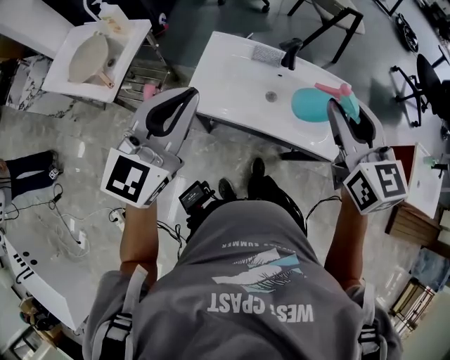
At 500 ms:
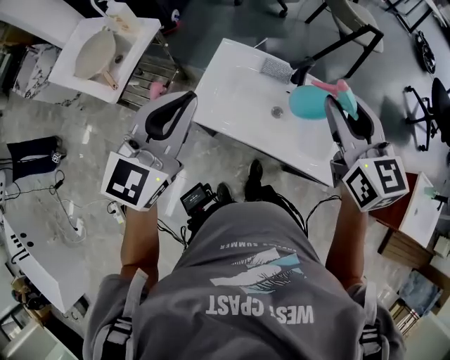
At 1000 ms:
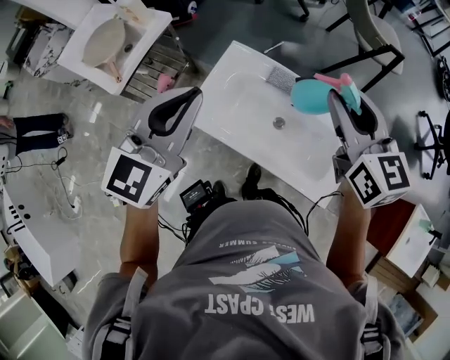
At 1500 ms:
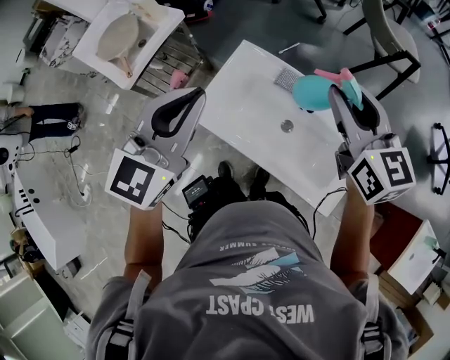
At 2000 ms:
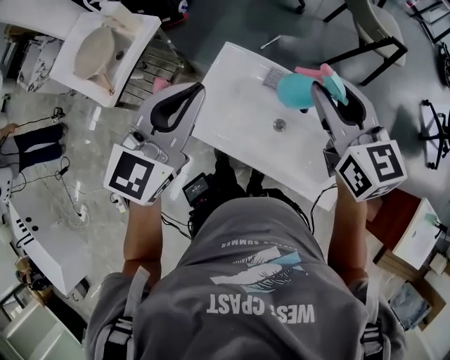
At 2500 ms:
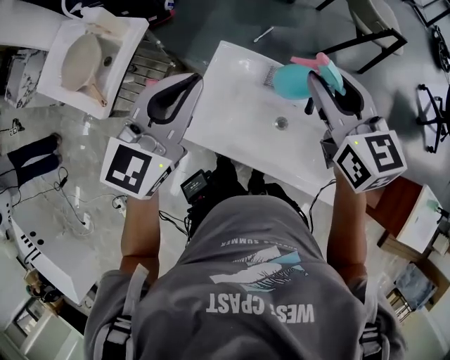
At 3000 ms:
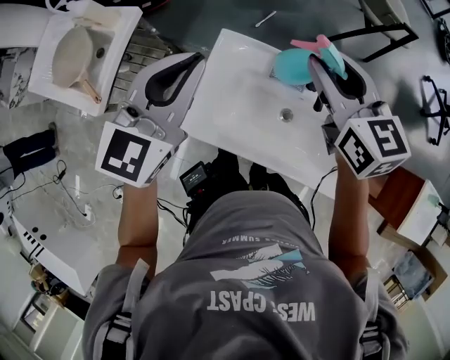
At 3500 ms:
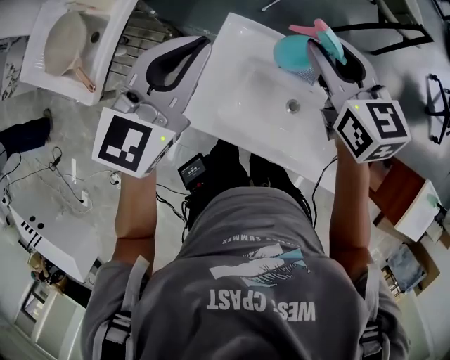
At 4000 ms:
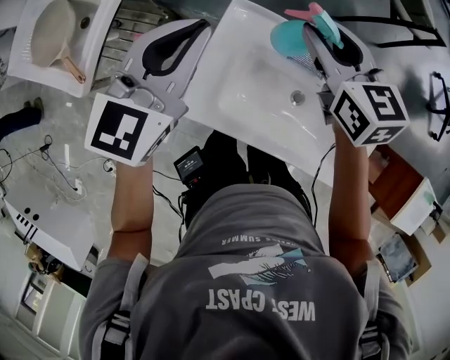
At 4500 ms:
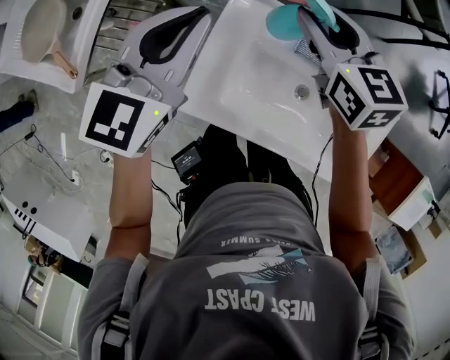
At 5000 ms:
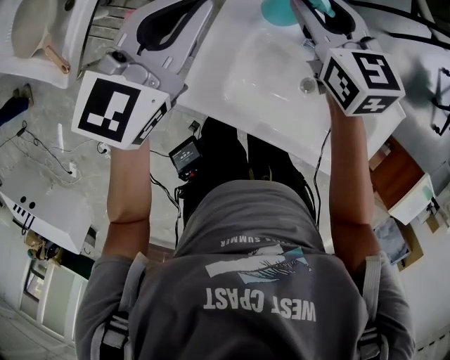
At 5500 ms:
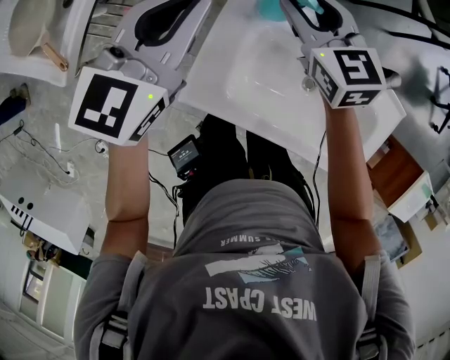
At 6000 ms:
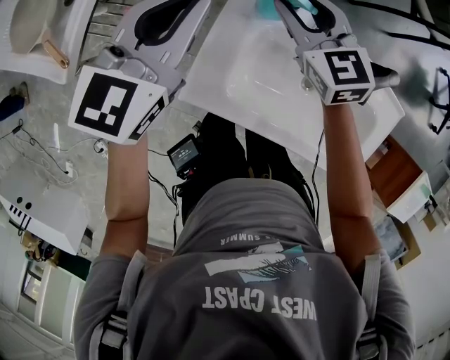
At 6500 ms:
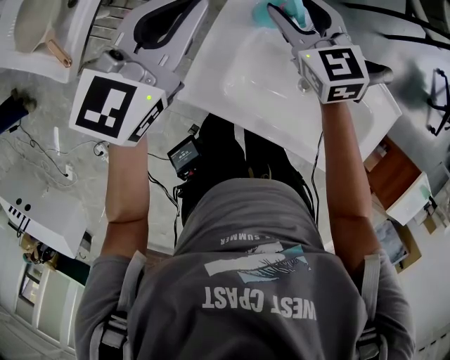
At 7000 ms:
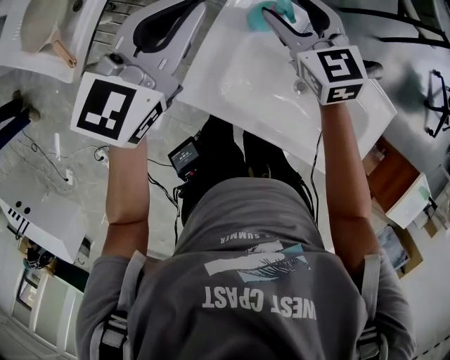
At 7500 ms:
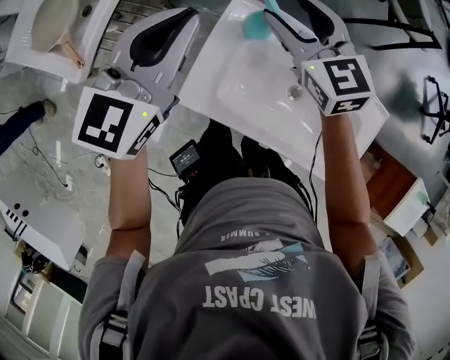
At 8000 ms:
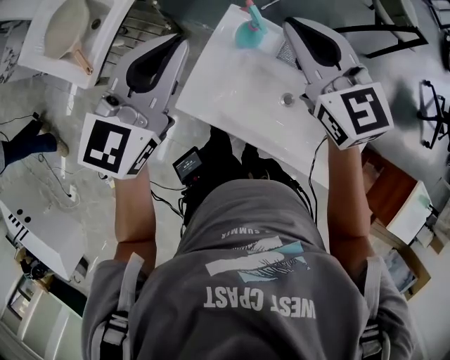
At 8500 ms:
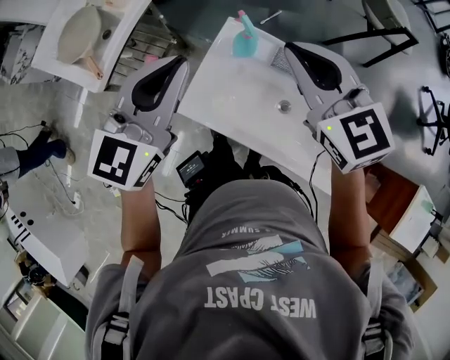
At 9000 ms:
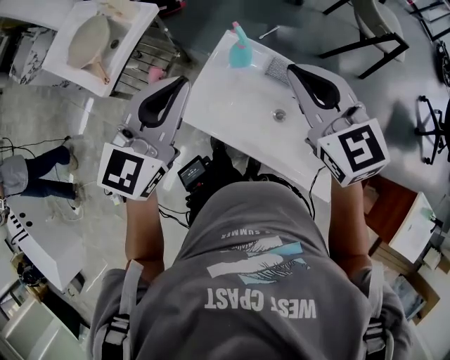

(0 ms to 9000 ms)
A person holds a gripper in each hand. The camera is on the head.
0 ms - 2000 ms: Both grippers move forward, approximately 20 cm.
2000 ms - 4500 ms: The left gripper goes approximately 25 cm forward and downward, while the right gripper shifts roughly 30 cm downward, forward and to the left.
4500 ms - 7000 ms: The right gripper ends up some 5 cm from where it was, and opens.
7000 ms - 9000 ms: The right gripper heads upward and backward, covering roughly 30 cm, and closes its fingers. Meanwhile the left gripper is displaced backward and upward by about 20 cm.

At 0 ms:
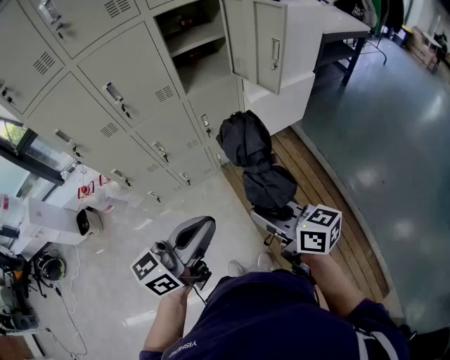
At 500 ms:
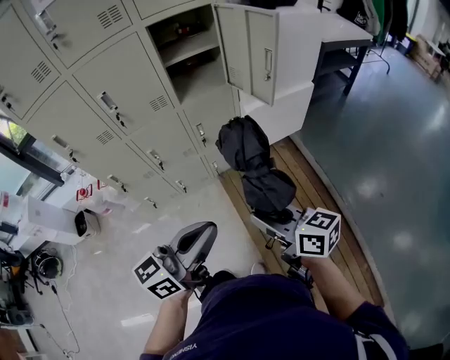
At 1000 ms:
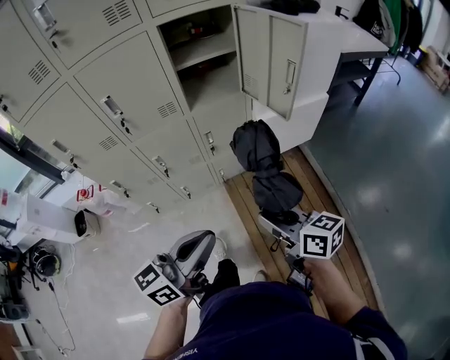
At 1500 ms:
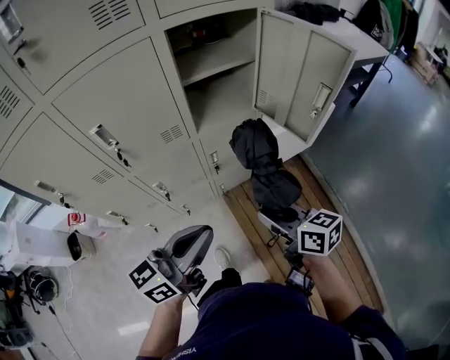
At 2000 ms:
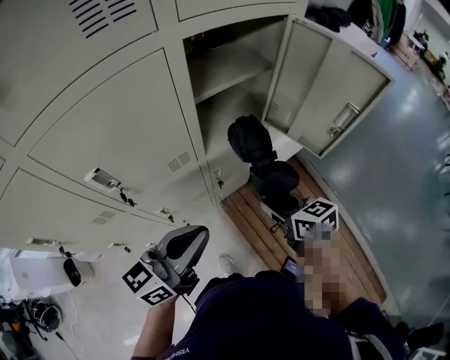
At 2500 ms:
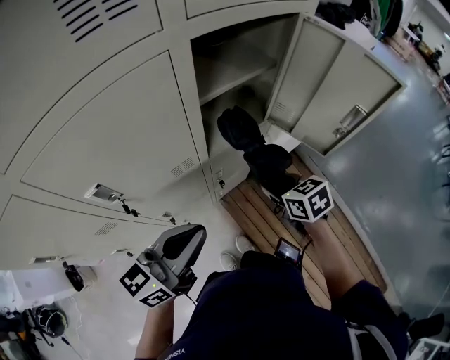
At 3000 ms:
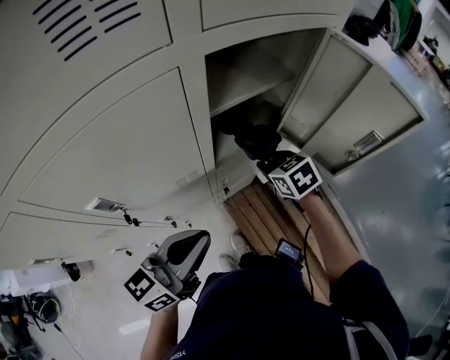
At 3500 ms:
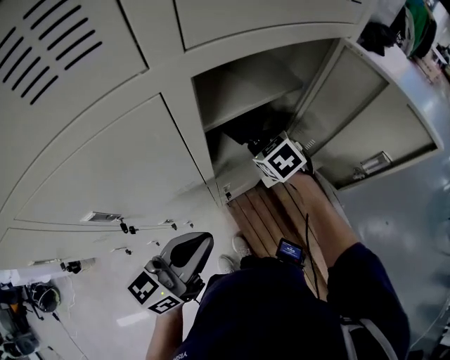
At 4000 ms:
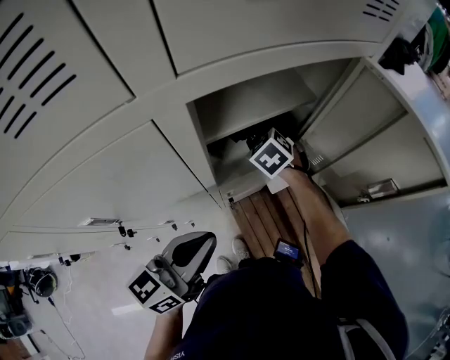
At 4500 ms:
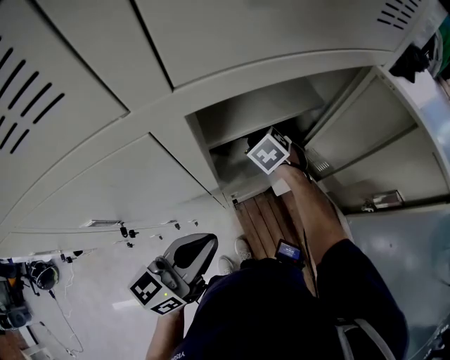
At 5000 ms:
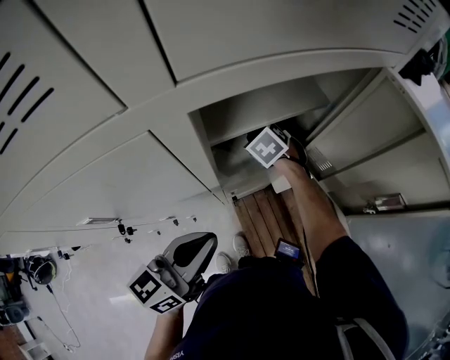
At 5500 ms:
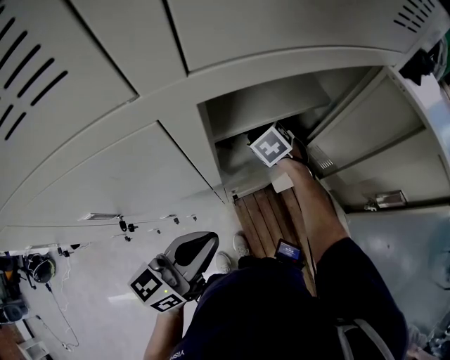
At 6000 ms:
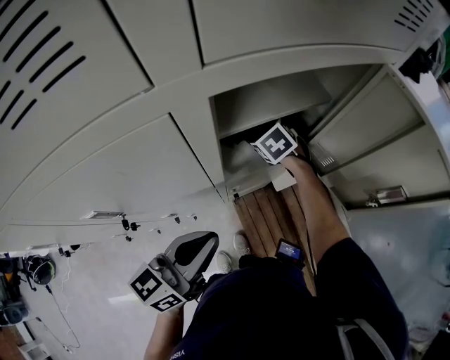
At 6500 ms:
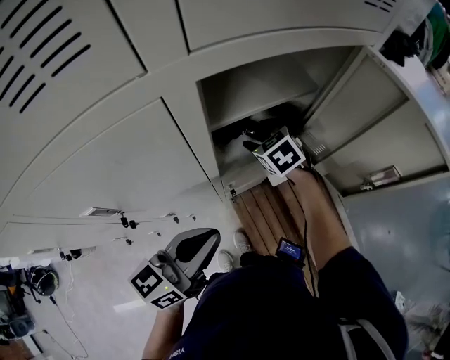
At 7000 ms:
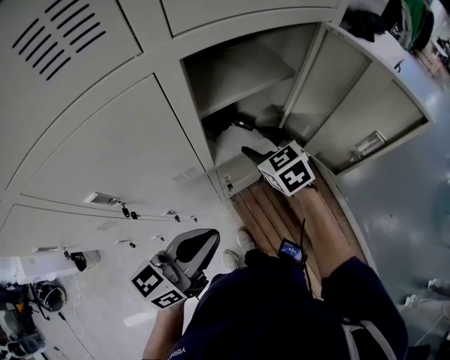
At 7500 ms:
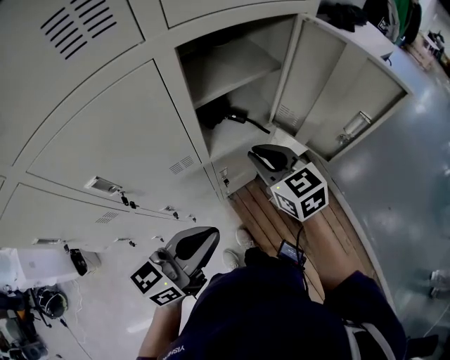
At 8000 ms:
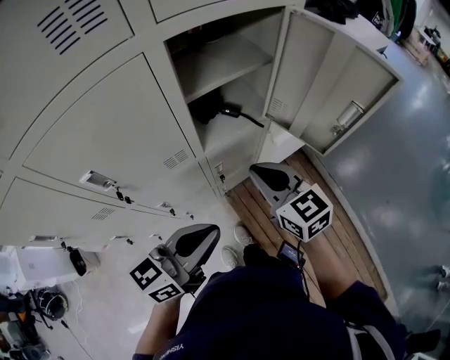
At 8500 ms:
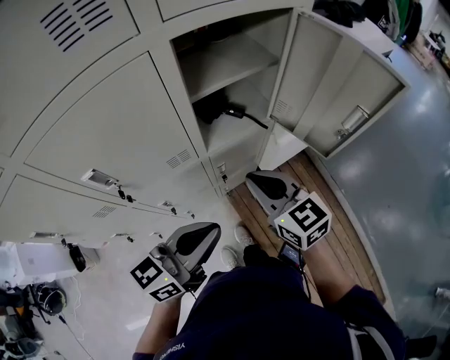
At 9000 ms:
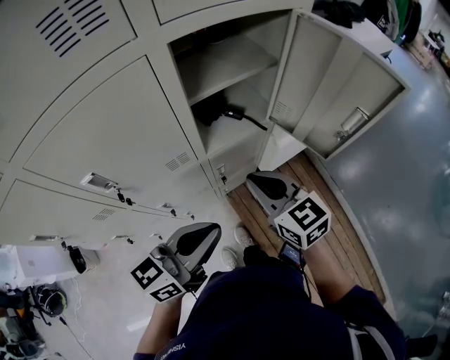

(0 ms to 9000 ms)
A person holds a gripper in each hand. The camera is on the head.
0 ms - 2000 ms: The grippers both shift forward by roughly 35 cm. The right gripper swivels roughly 30 degrees.
2000 ms - 4500 ms: The right gripper moves forward, roughly 35 cm, and rotates around the line of its fingers by some 40 degrees, counterclockwise from behind. Meanwhile the left gripper goes about 15 cm forward.
4500 ms - 7000 ms: The left gripper goes roughly 5 cm backward, while the right gripper moves backward and upward, approximately 15 cm, rotates some 20 degrees, and opens its fingers.
7000 ms - 9000 ms: The right gripper moves backward, roughly 15 cm, turns by about 20 degrees, and closes.

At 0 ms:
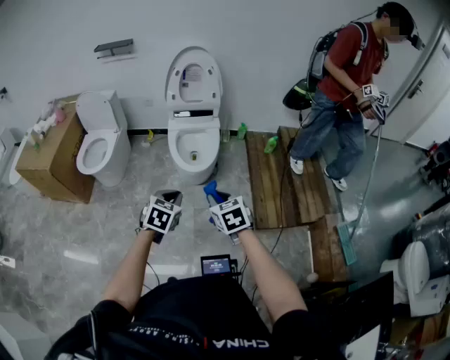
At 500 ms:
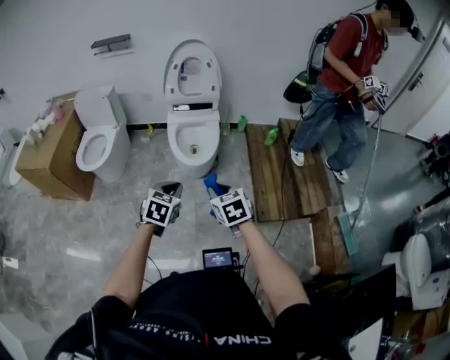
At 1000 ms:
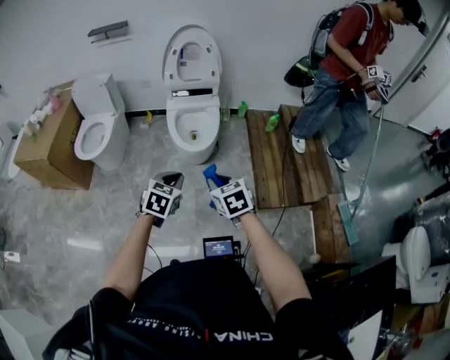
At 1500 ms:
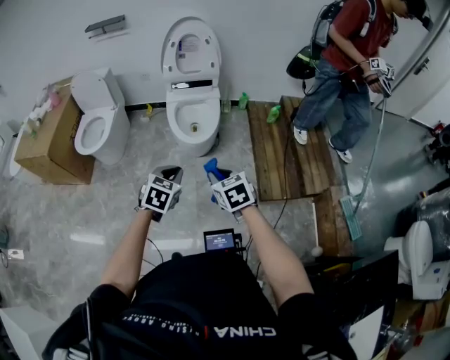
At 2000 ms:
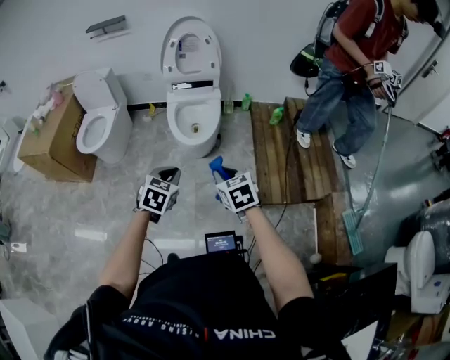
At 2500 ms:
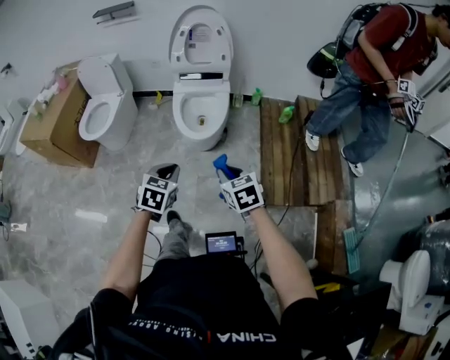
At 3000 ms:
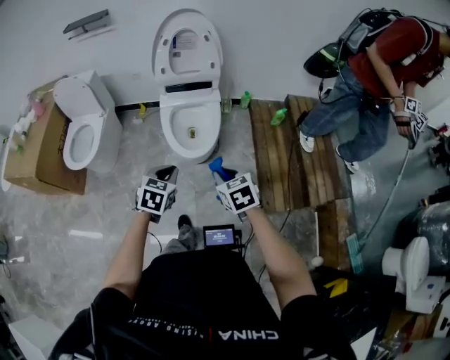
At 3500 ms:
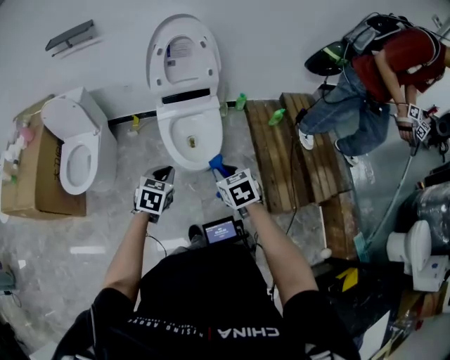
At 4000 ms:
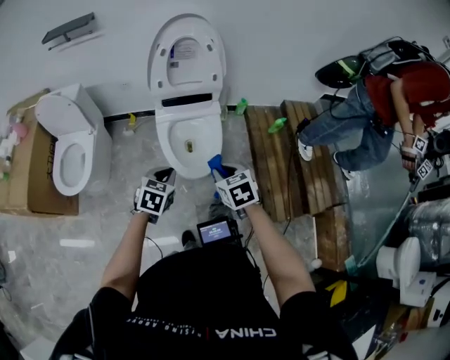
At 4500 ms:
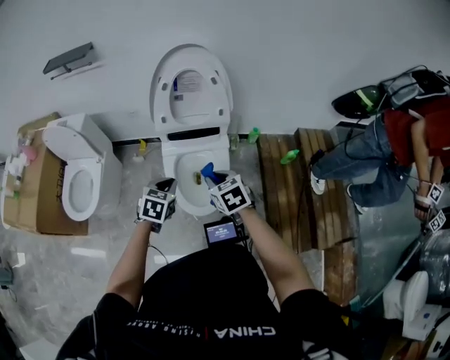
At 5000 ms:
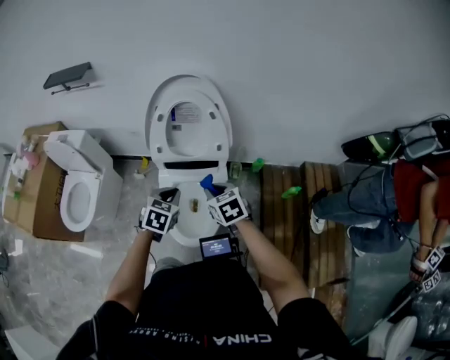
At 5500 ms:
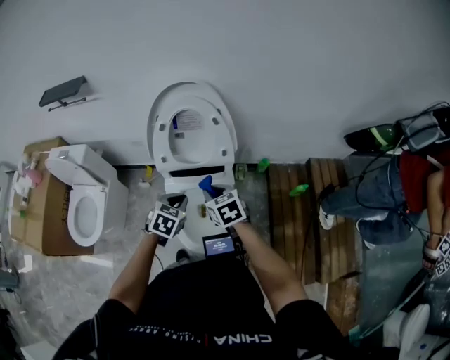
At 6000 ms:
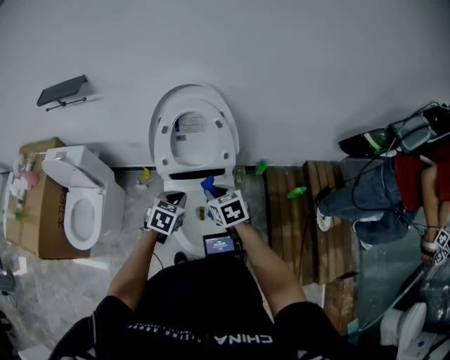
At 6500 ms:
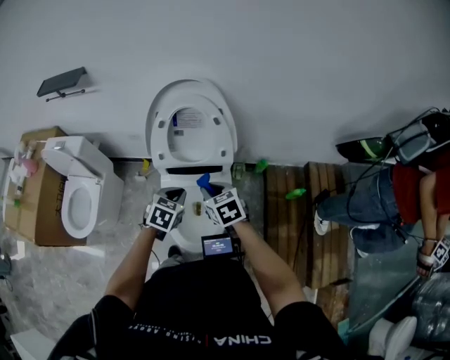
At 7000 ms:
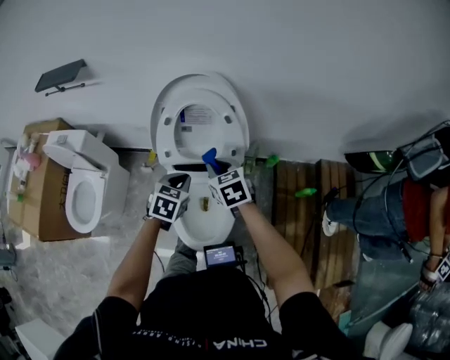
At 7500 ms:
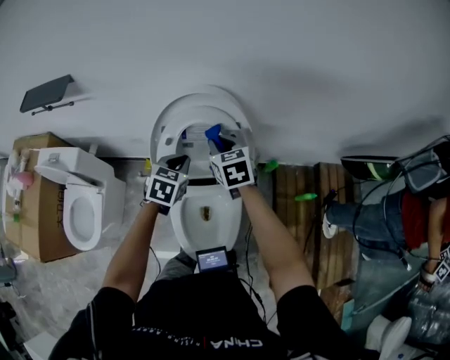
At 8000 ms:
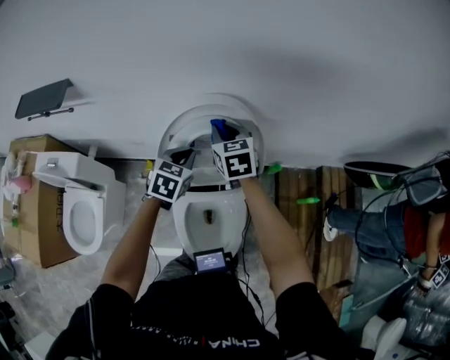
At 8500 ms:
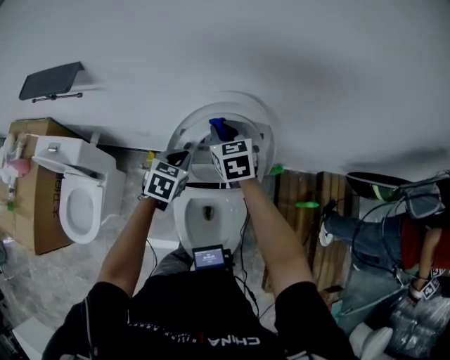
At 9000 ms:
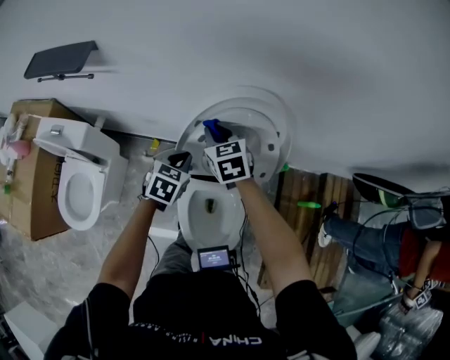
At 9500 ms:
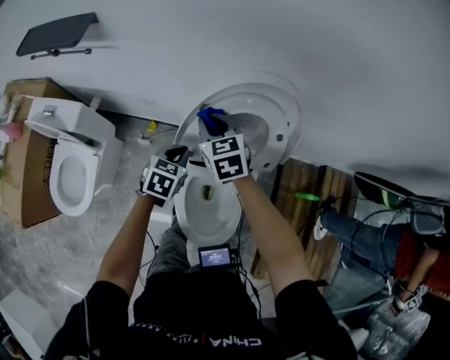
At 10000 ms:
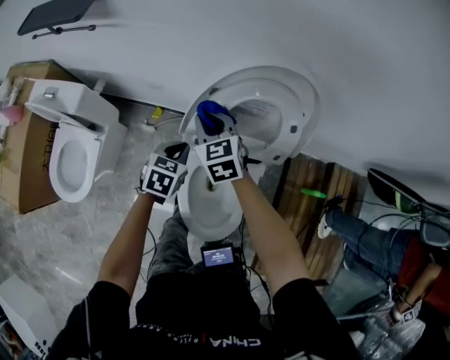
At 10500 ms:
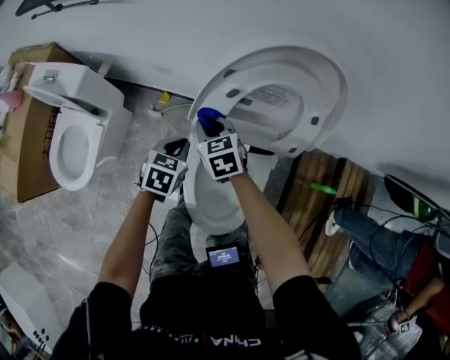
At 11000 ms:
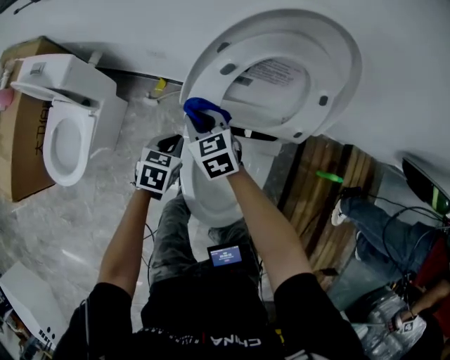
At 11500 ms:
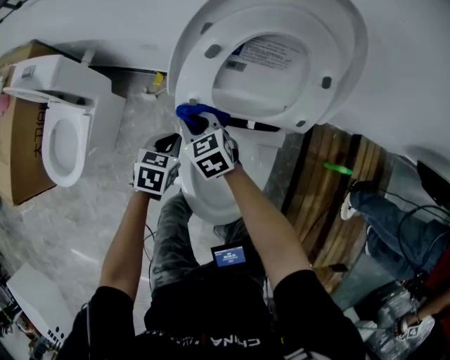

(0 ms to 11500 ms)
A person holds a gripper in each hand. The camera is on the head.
0 ms - 2000 ms: The left gripper moves roughly 5 cm. The right gripper is displaced to the right by some 5 cm.
2000 ms - 4000 ms: The grippers both shift forward by about 35 cm.
4000 ms - 6000 ms: Both grippers move forward, about 35 cm.
6000 ms - 7500 ms: Both grippers travel together forward, some 25 cm.
7500 ms - 9500 ms: The left gripper goes roughly 15 cm to the left and downward. Meanwhile the right gripper travels to the left by roughly 20 cm.
9500 ms - 11500 ms: Both grippers travel together downward and backward, about 25 cm.
